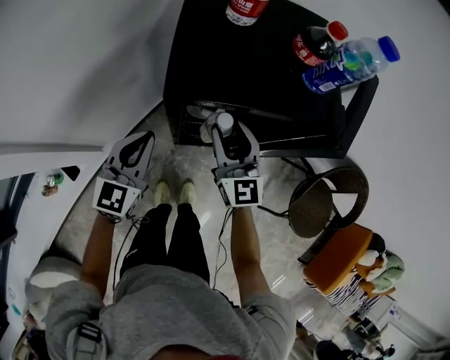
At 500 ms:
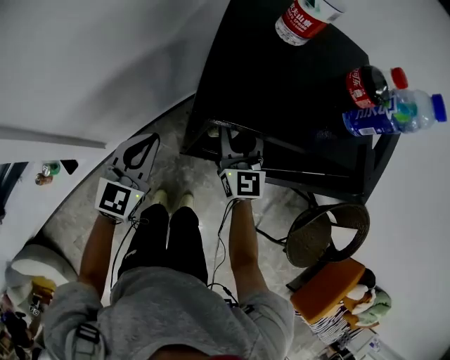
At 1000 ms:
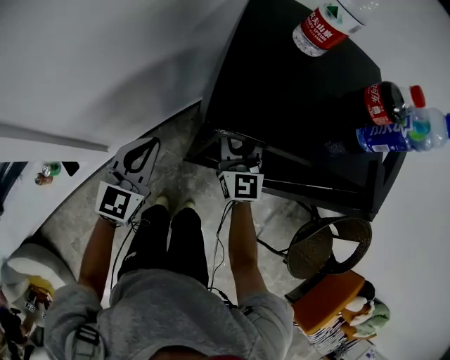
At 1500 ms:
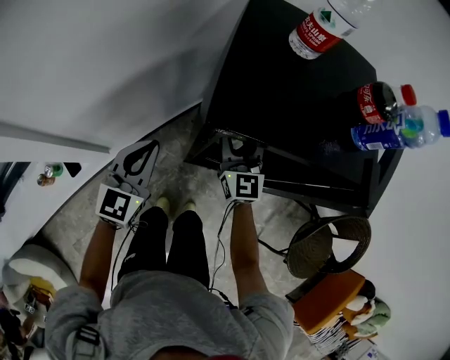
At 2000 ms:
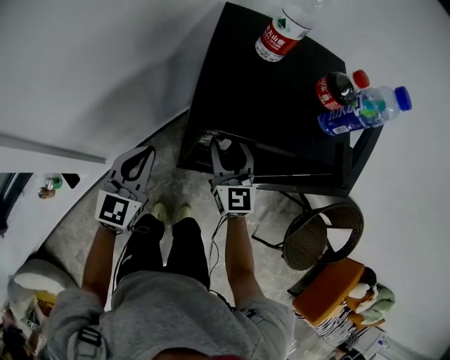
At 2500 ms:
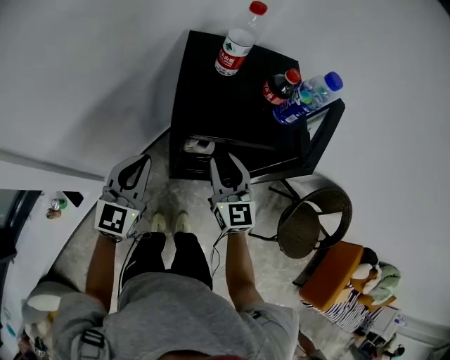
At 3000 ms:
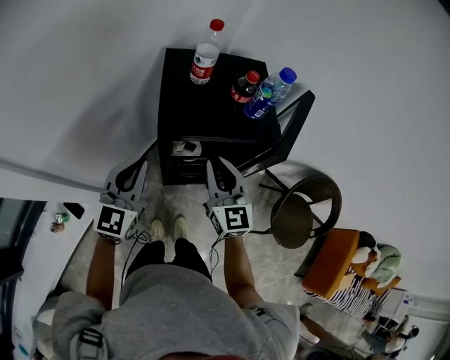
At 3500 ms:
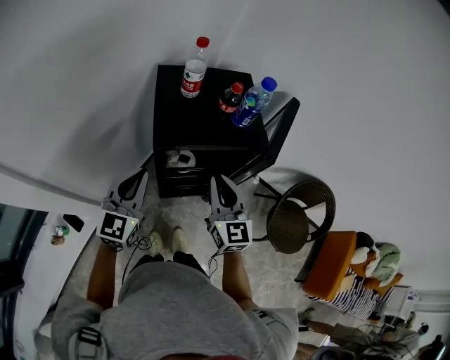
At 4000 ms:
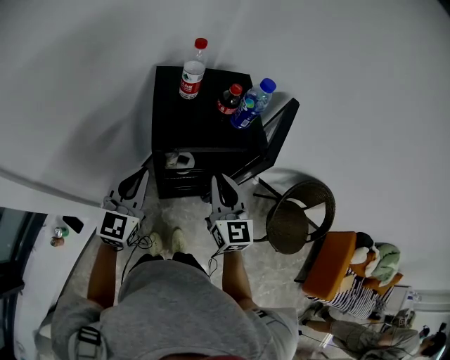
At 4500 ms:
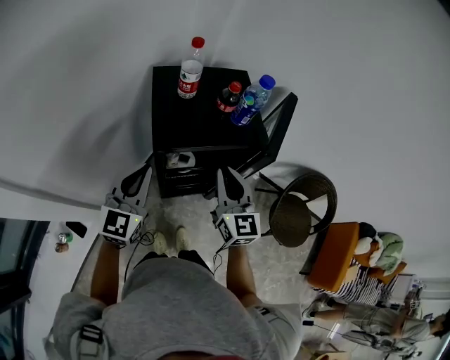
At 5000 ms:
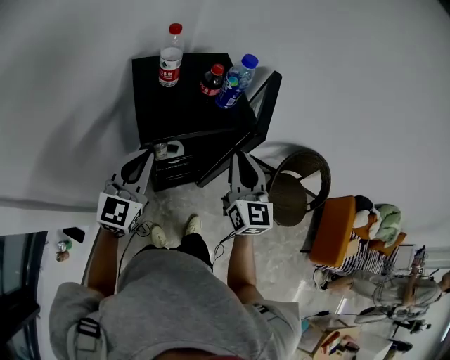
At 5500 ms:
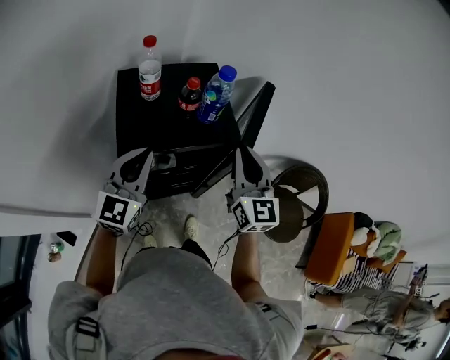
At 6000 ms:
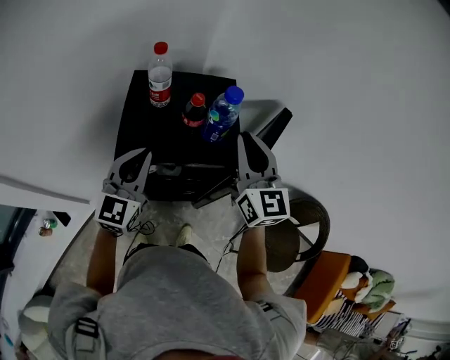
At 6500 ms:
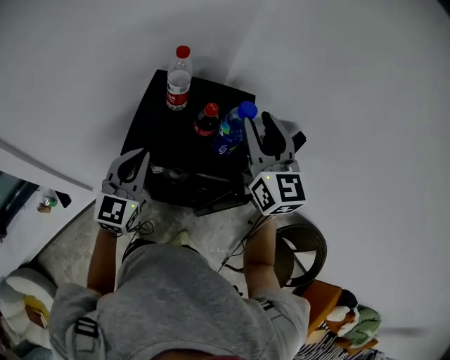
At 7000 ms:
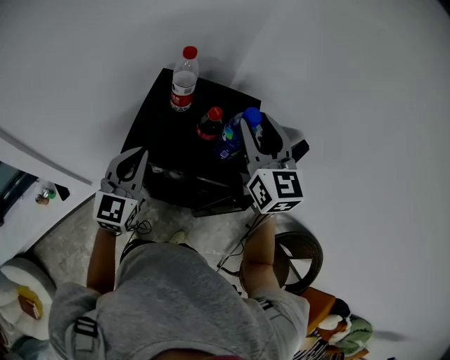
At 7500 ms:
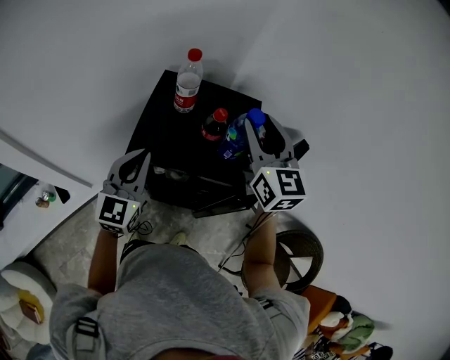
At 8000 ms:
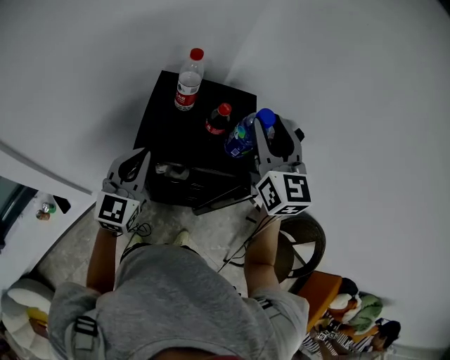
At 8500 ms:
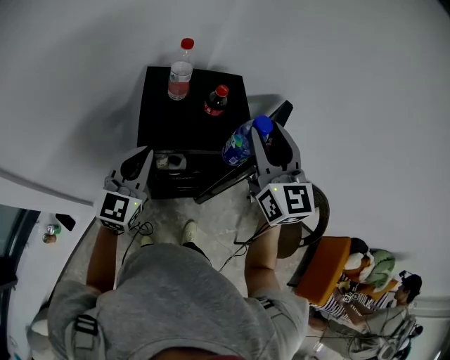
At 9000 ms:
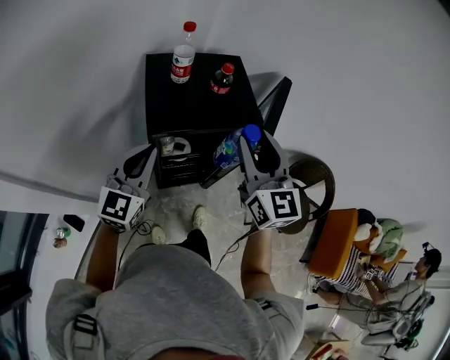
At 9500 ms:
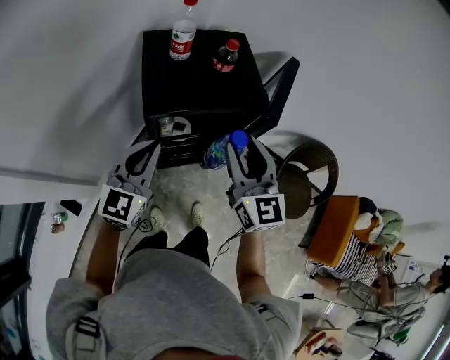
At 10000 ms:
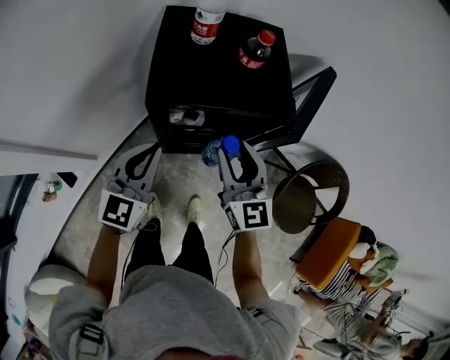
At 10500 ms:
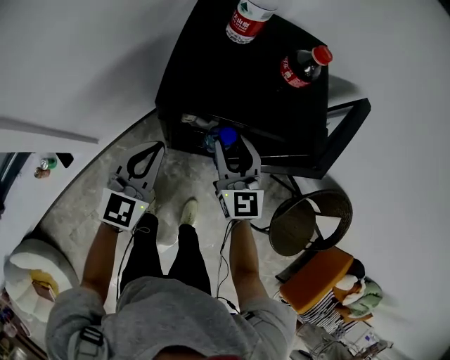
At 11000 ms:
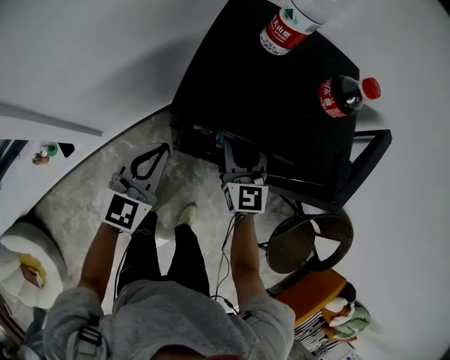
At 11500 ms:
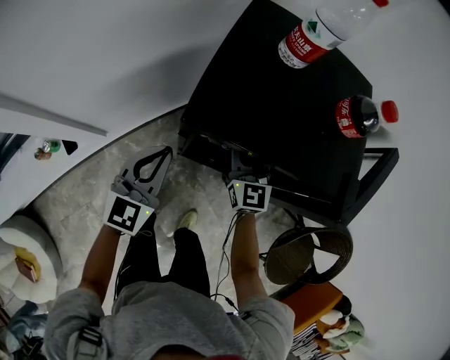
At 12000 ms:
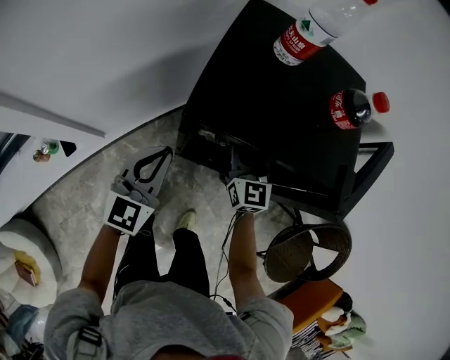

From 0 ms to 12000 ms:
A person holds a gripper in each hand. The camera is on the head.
From 0 ms to 2000 ms: The left gripper reaches about 10 cm downward, then returns.
From 2000 ms to 4000 ms: The right gripper heads upward, backward and to the right, covering some 25 cm, and closes, while the left gripper shifts roughly 20 cm upward.
From 4000 ms to 6000 ms: The right gripper heads forward, to the right and upward, covering about 20 cm. Meanwhile the left gripper travels forward and to the right by roughly 15 cm.
From 6000 ms to 8000 ms: The right gripper heads upward, covering roughly 5 cm, and opens its fingers, while the left gripper is displaced to the left by roughly 5 cm.
From 8000 ms to 10000 ms: The left gripper goes roughly 15 cm downward and backward; the right gripper is displaced downward and backward by some 25 cm.
From 10000 ms to 12000 ms: The right gripper shifts about 25 cm downward and forward; the left gripper moves downward, about 10 cm.

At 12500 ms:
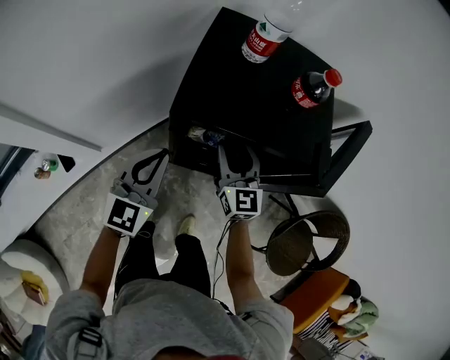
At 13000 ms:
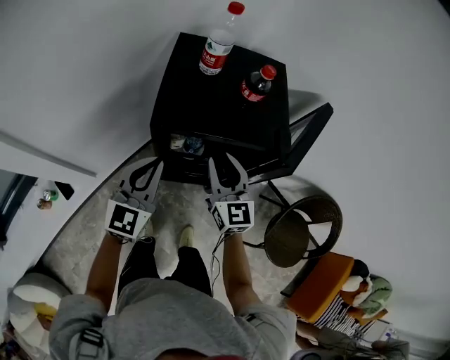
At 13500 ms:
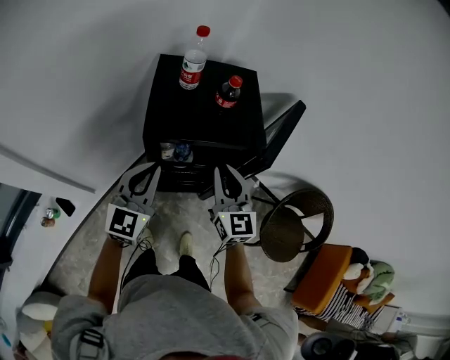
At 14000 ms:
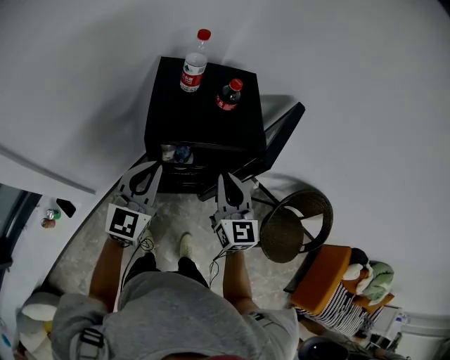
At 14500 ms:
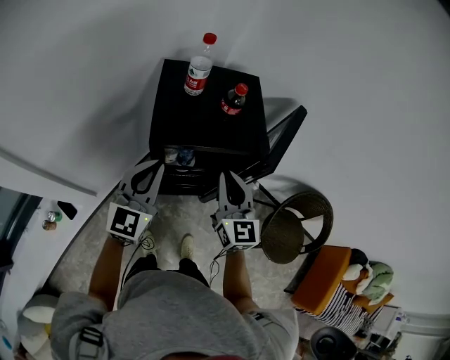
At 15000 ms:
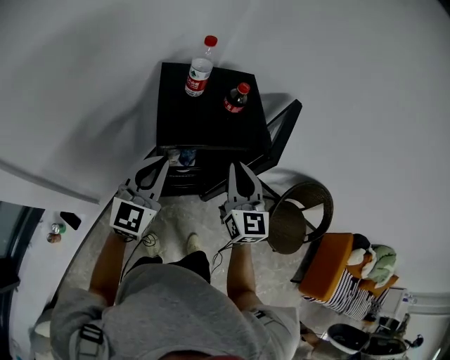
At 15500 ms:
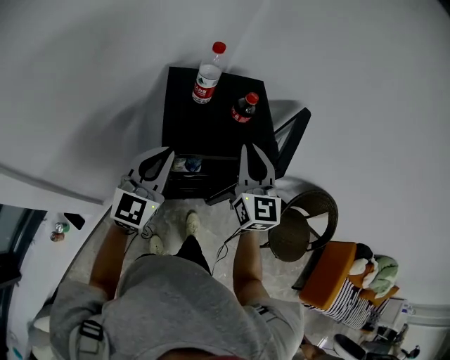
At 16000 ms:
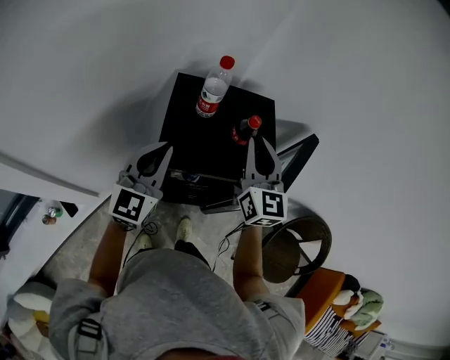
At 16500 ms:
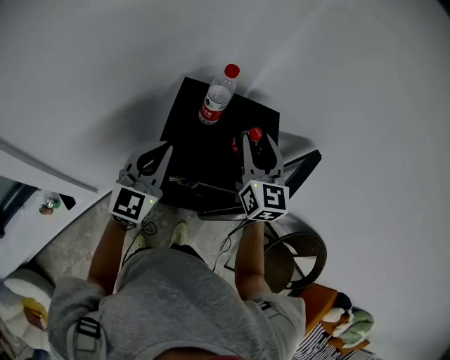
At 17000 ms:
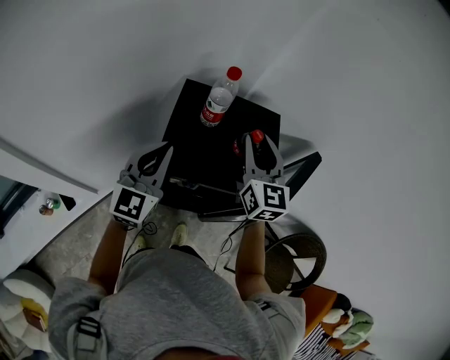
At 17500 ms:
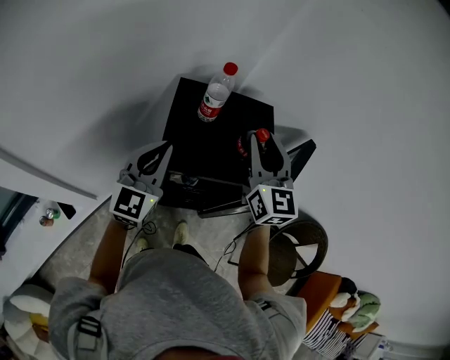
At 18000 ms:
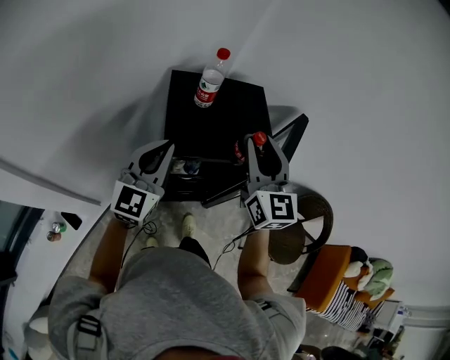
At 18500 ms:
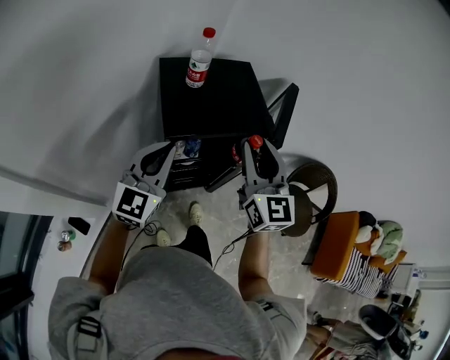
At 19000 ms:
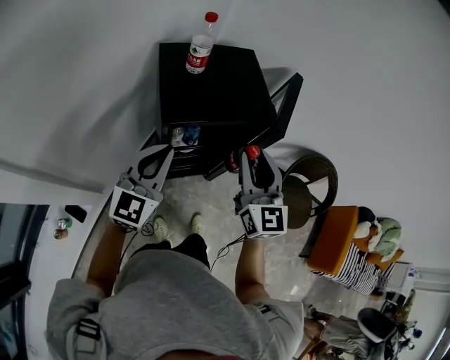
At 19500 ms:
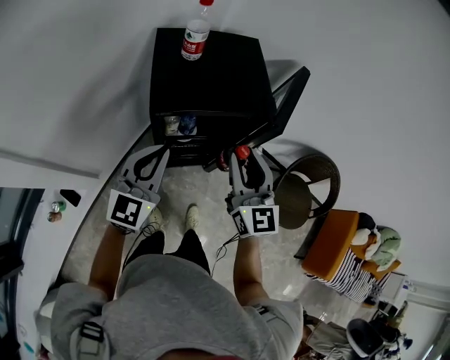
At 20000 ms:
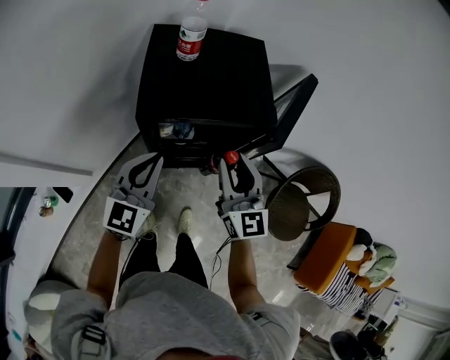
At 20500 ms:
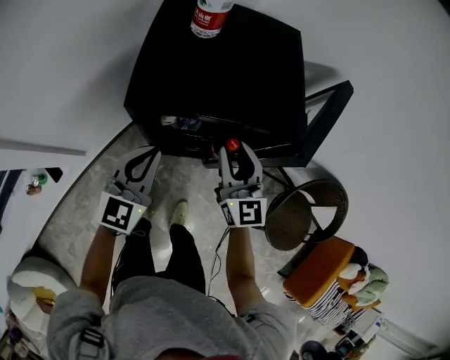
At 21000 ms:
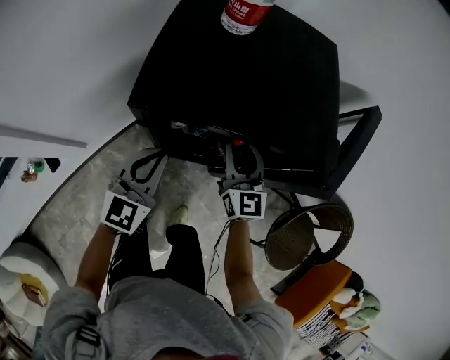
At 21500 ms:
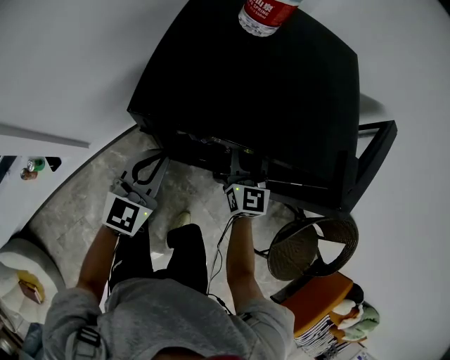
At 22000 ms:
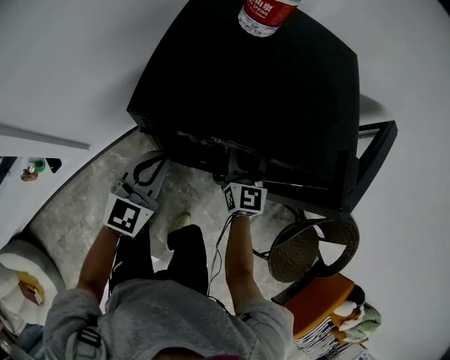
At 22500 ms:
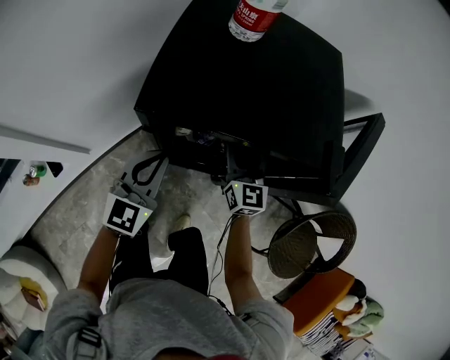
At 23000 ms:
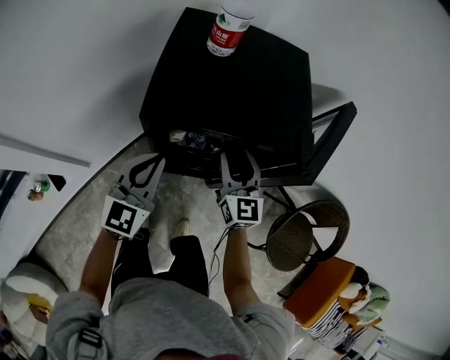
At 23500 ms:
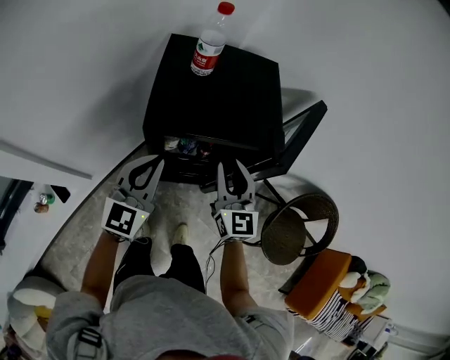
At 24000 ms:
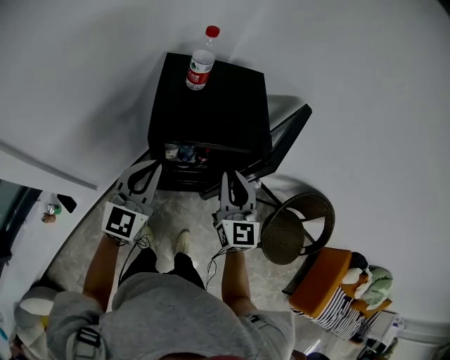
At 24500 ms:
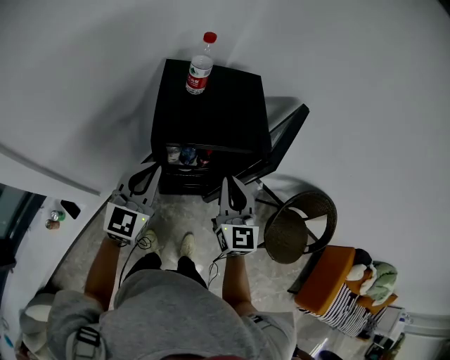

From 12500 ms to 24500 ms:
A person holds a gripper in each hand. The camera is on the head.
From 12500 ms to 14500 ms: The left gripper goes about 15 cm upward. Meanwhile the right gripper travels upward and backward by roughly 20 cm, and closes its fingers.
From 14500 ms to 16500 ms: The right gripper goes approximately 20 cm forward and upward, and opens its fingers. Meanwhile the left gripper is displaced forward by some 10 cm.
From 16500 ms to 18500 ms: The left gripper heads backward, covering about 10 cm, and rotates approximately 20 degrees. The right gripper shifts approximately 20 cm backward.
From 18500 ms to 20500 ms: The grippers both shift downward by roughly 20 cm.
From 20500 ms to 22500 ms: The right gripper shifts some 15 cm downward and forward. The left gripper shifts some 10 cm downward.
From 22500 ms to 24500 ms: The left gripper goes about 25 cm upward. Meanwhile the right gripper is displaced upward and backward by about 30 cm, and closes.

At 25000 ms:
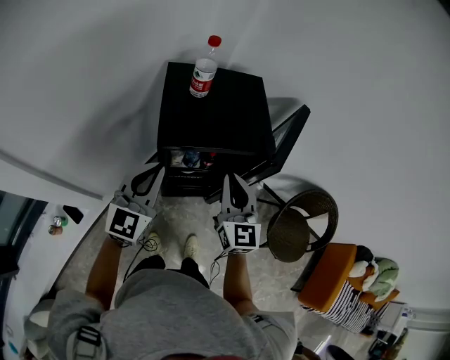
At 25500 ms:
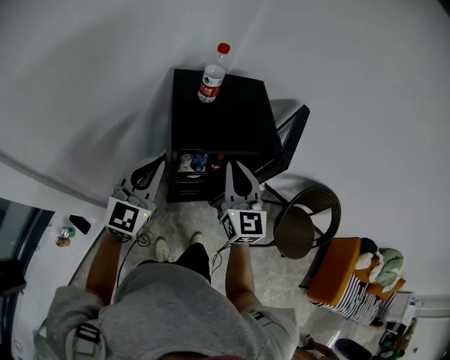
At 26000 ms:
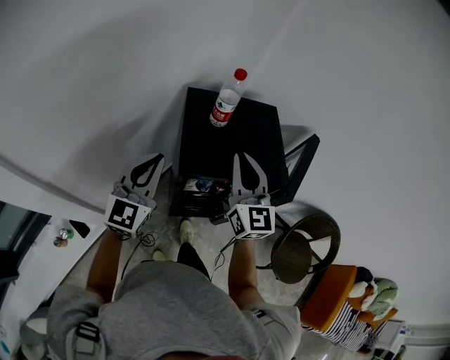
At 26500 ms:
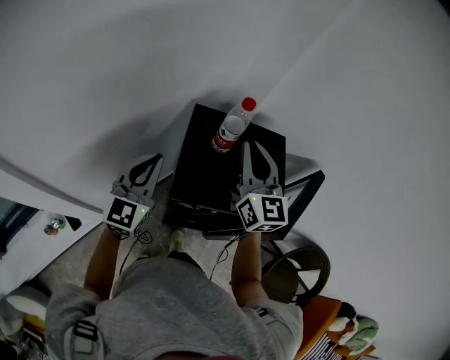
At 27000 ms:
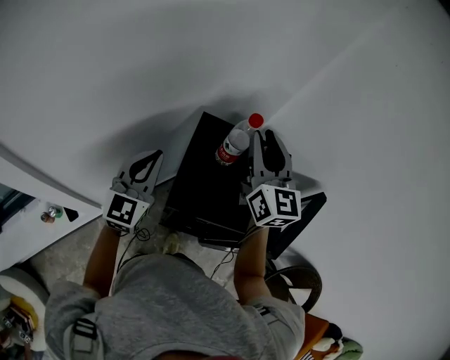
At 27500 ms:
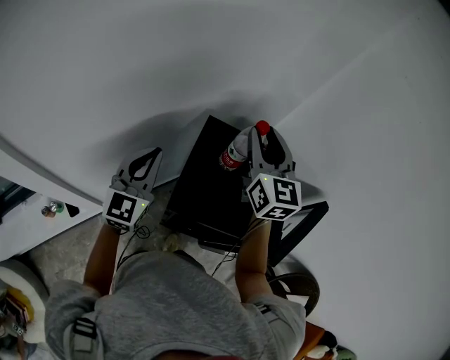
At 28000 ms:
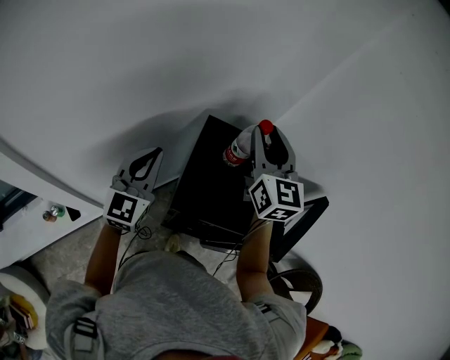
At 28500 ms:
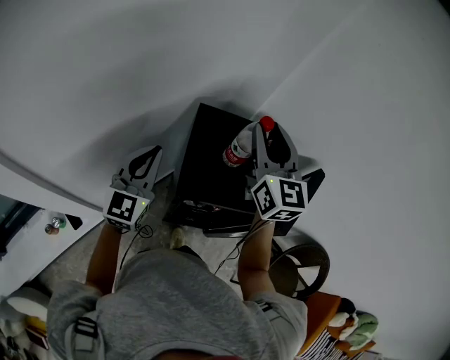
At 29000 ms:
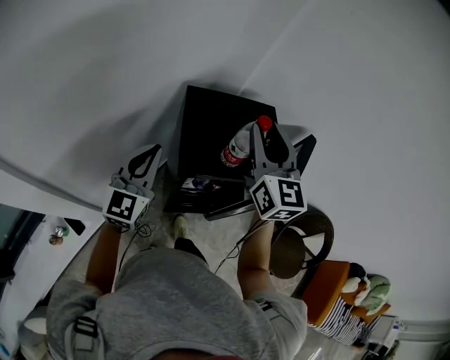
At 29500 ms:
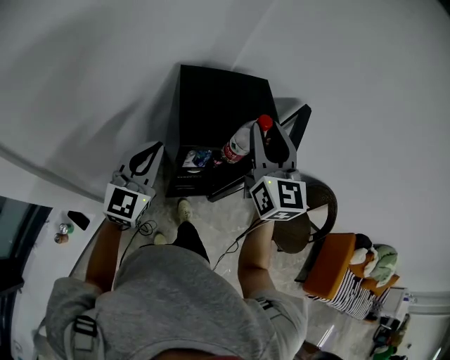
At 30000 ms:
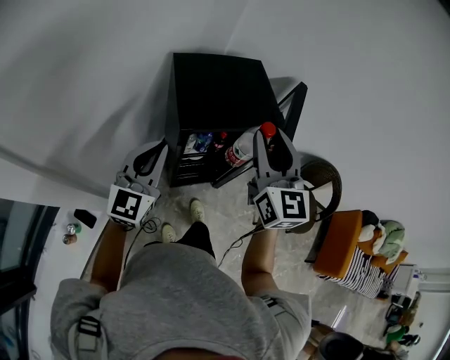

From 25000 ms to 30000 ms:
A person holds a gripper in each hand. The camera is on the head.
From 25000 ms to 27500 ms: The right gripper moves forward and upward, roughly 35 cm, turns by some 20 degrees, and opens up; the left gripper moves forward and to the left, roughly 20 cm, and turns by roughly 30 degrees.
From 27500 ms to 30000 ms: The left gripper changes place by roughly 20 cm, and changes its angle by approximately 30 degrees. The right gripper shifts by about 30 cm, and changes its angle by approximately 30 degrees.
